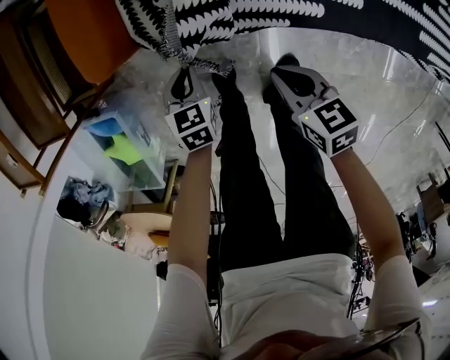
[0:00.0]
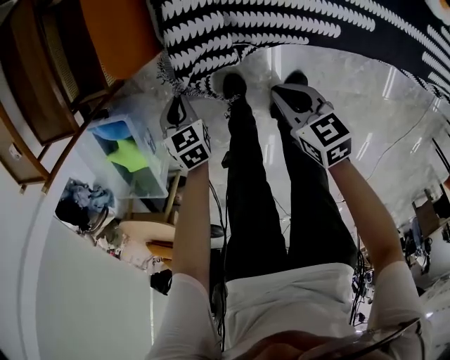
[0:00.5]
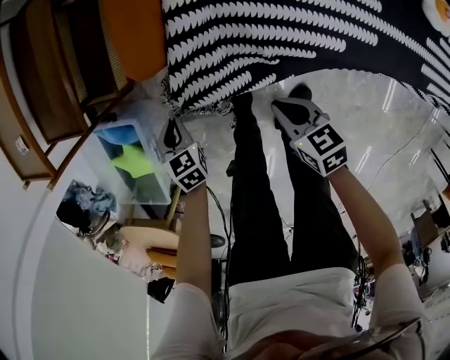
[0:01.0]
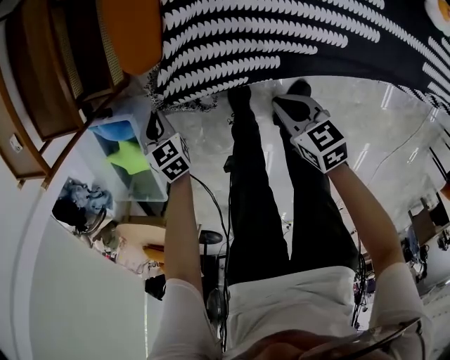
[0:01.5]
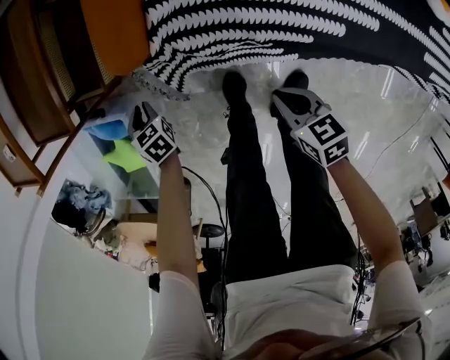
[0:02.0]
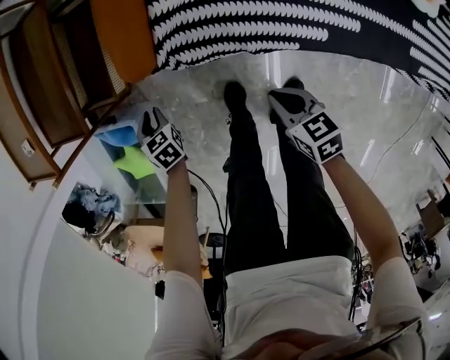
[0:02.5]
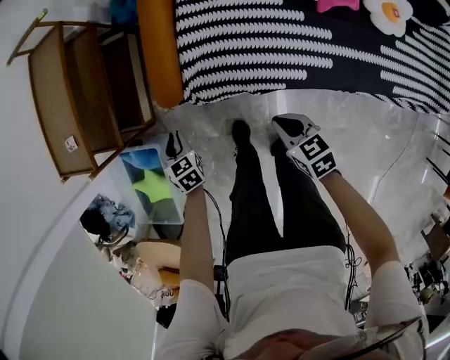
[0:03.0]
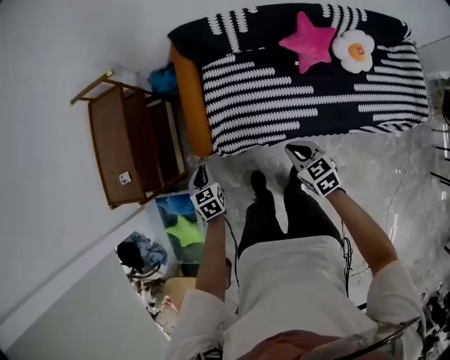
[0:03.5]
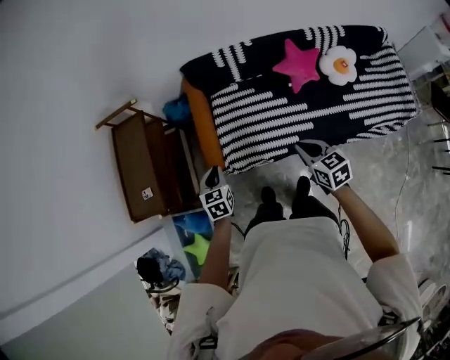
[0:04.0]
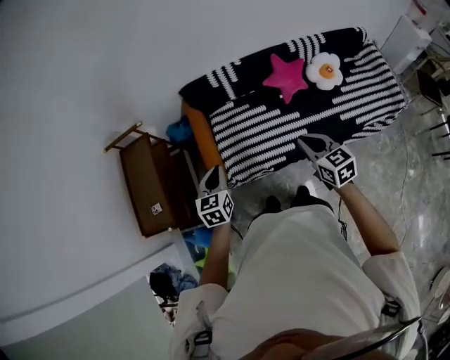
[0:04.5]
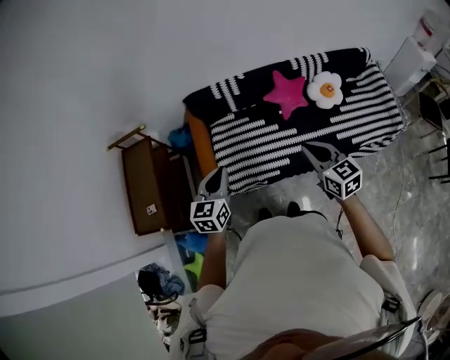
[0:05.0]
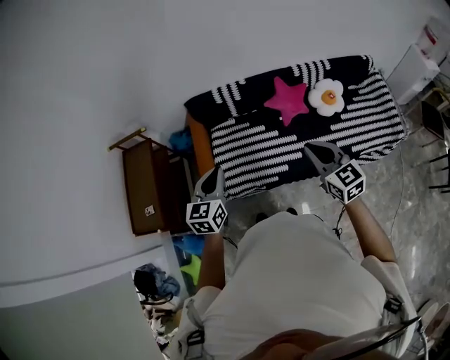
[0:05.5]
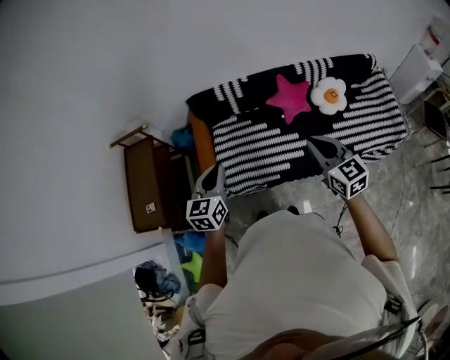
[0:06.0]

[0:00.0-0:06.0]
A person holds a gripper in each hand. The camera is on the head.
0:00.0 to 0:02.0: The right gripper moves roughly 10 cm; the left gripper ends up some 25 cm from where it was, and rotates approximately 30 degrees.
0:02.0 to 0:04.0: The two grippers go some 50 cm upward. The right gripper changes its angle by roughly 30 degrees. Meanwhile the left gripper turns by approximately 40 degrees.
0:04.0 to 0:06.0: The two grippers go approximately 25 cm upward and to the right. The right gripper turns by roughly 20 degrees; the left gripper changes its angle by roughly 30 degrees.

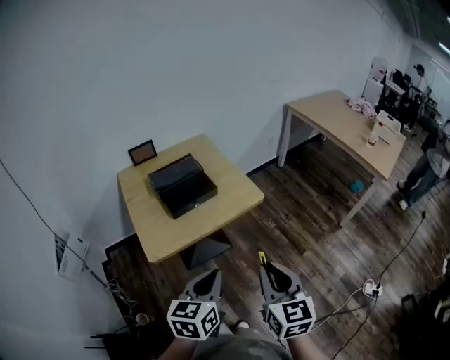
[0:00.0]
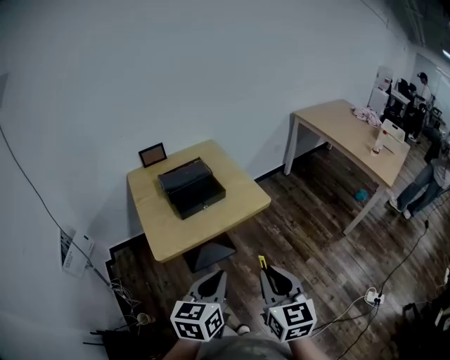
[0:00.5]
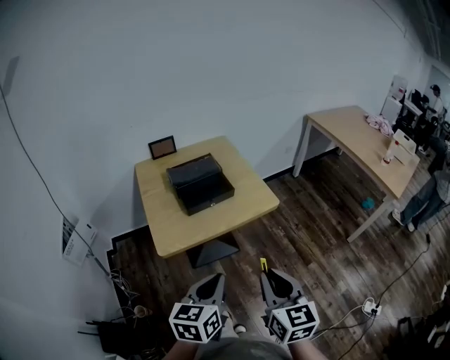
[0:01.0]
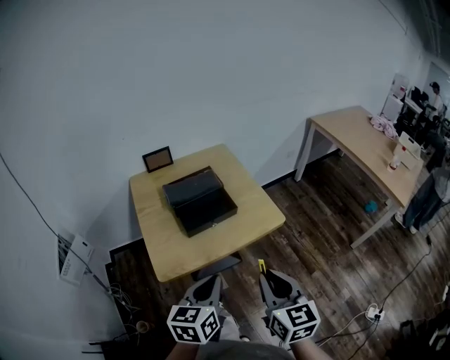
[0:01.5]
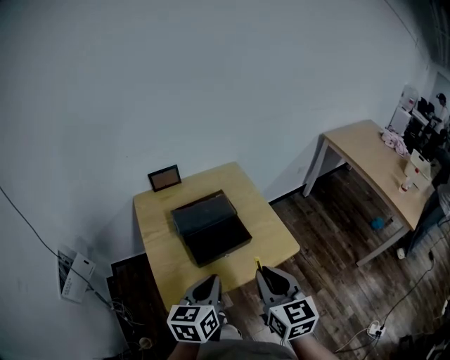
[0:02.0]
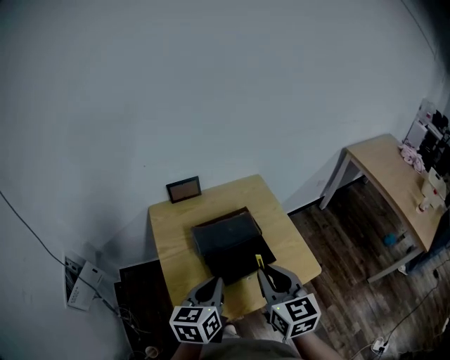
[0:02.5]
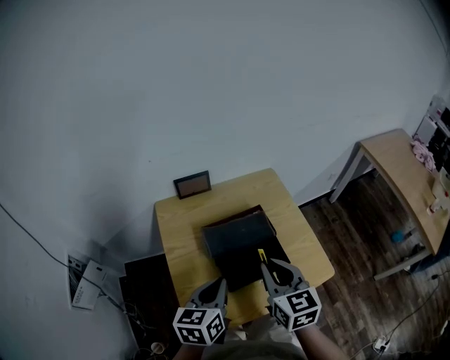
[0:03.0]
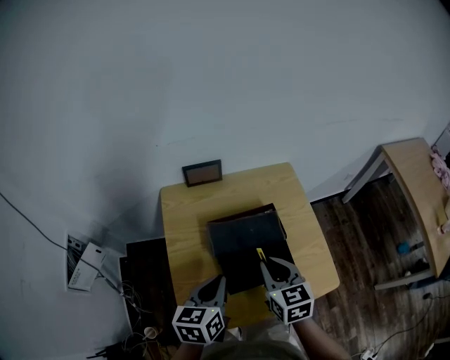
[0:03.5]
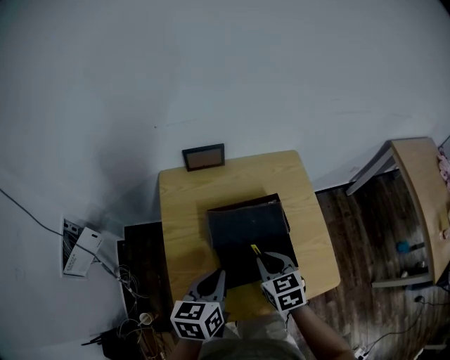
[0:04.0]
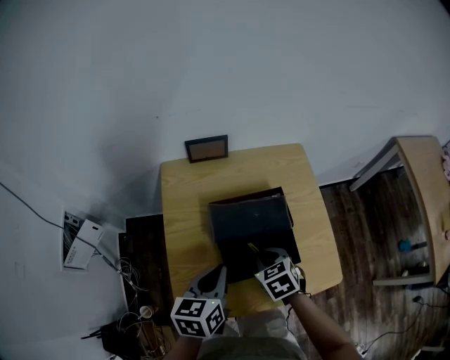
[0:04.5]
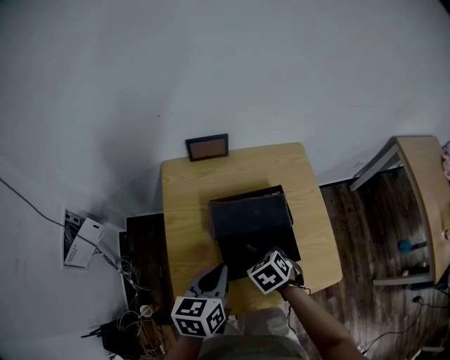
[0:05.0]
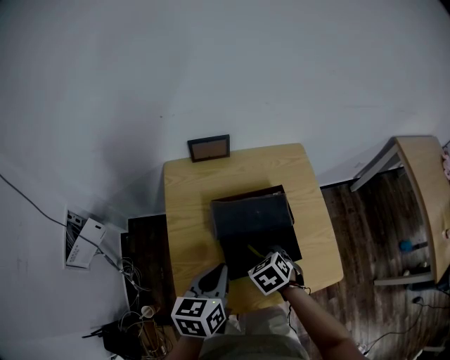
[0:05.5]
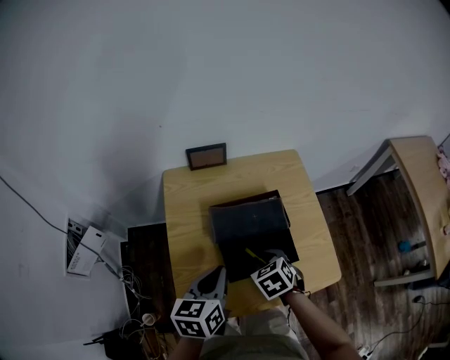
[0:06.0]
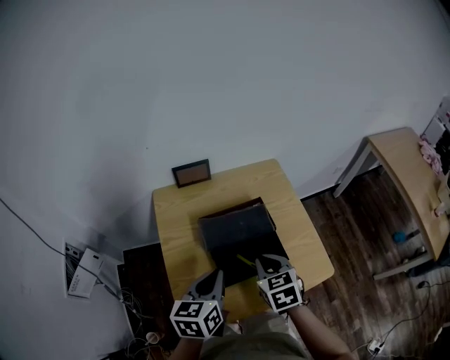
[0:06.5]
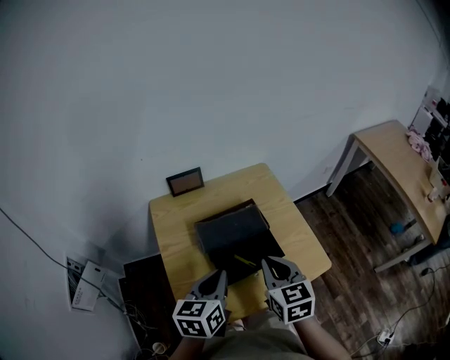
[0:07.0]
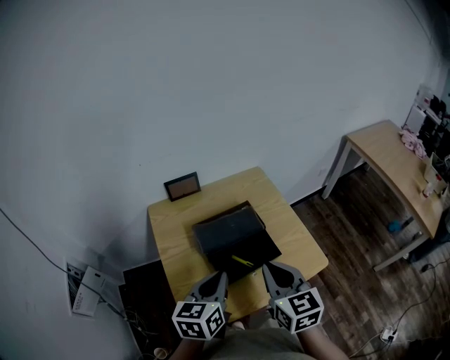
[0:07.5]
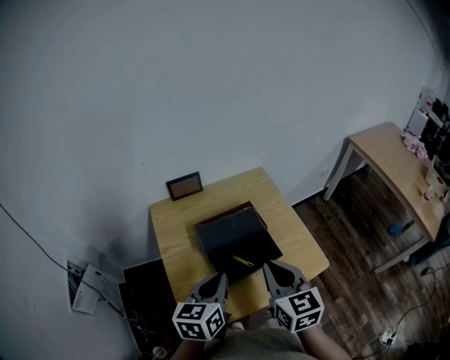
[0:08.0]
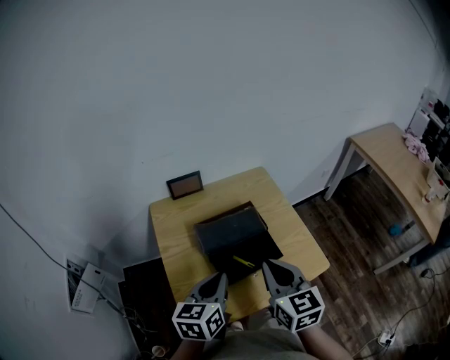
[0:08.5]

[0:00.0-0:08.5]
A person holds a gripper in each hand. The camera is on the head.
0:00.0 to 0:02.0: The two grippers go about 25 cm forward and to the left.
0:02.0 to 0:04.0: The right gripper heads forward, downward and to the left, covering roughly 30 cm, and swivels roughly 30 degrees; the left gripper moves forward, to the left and downward, about 20 cm.
0:04.0 to 0:06.5: The right gripper shifts by roughly 5 cm.
0:06.5 to 0:08.5: The right gripper heads upward and backward, covering approximately 15 cm, and rotates roughly 30 degrees.

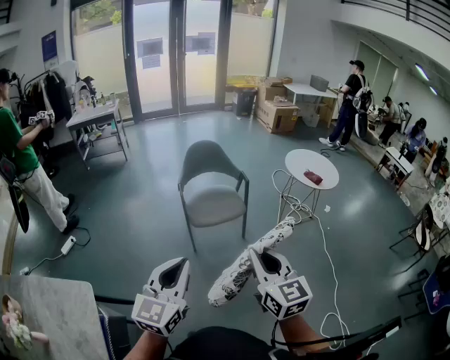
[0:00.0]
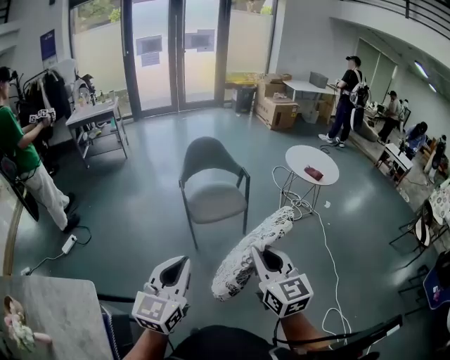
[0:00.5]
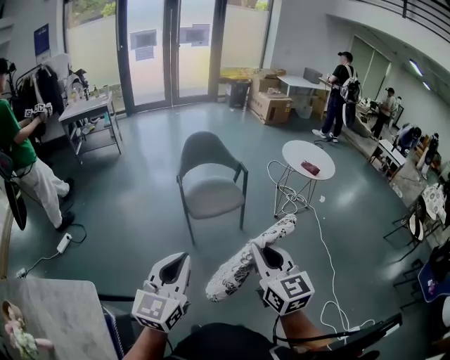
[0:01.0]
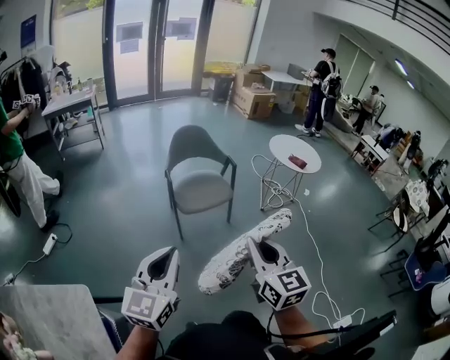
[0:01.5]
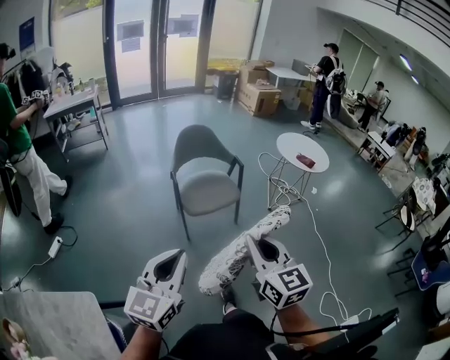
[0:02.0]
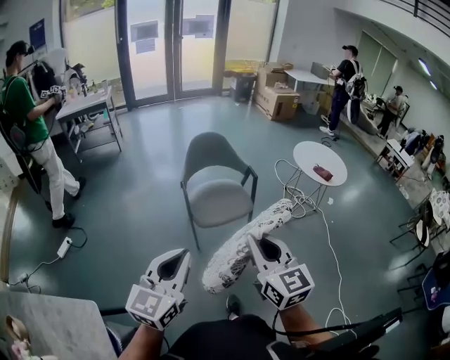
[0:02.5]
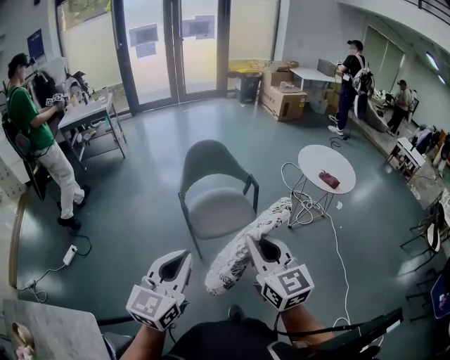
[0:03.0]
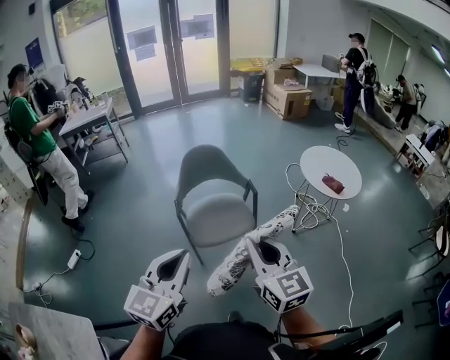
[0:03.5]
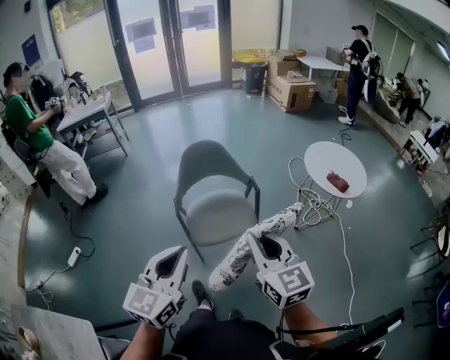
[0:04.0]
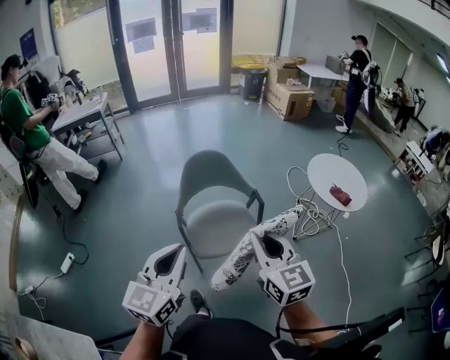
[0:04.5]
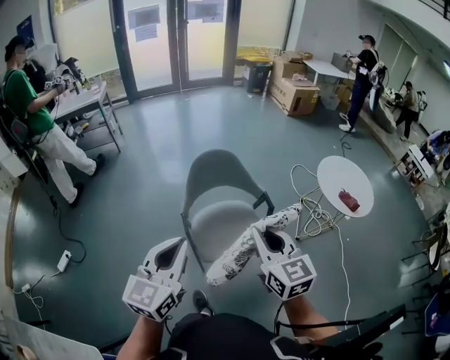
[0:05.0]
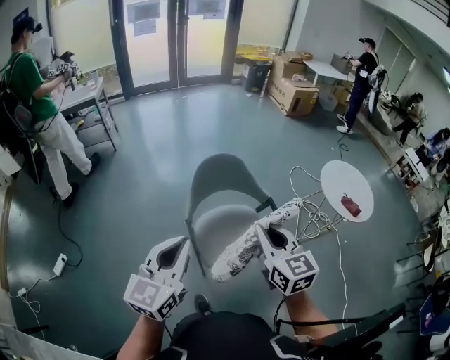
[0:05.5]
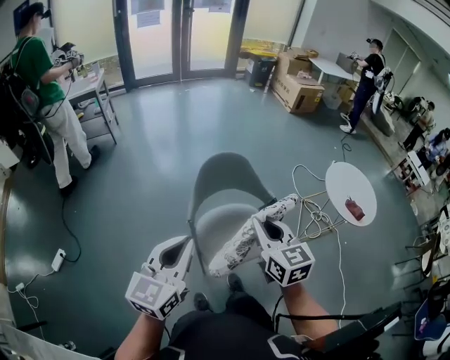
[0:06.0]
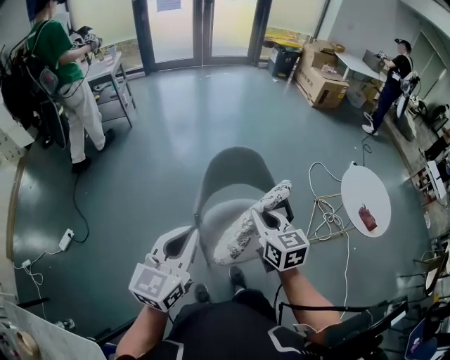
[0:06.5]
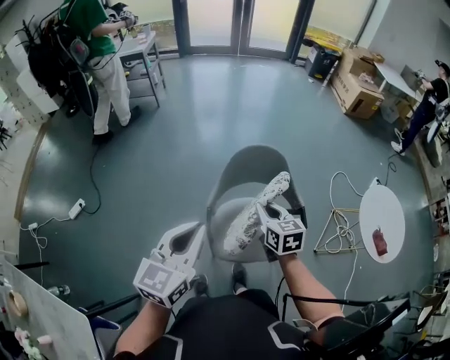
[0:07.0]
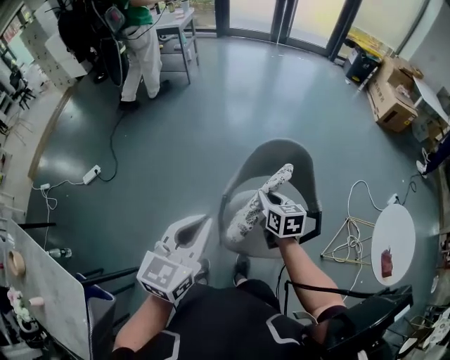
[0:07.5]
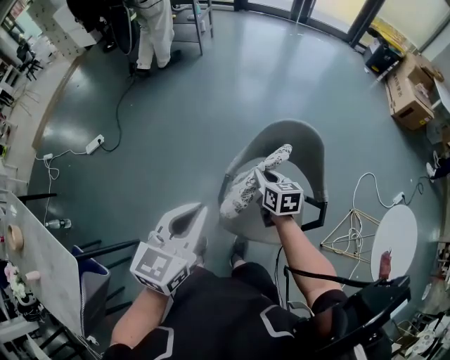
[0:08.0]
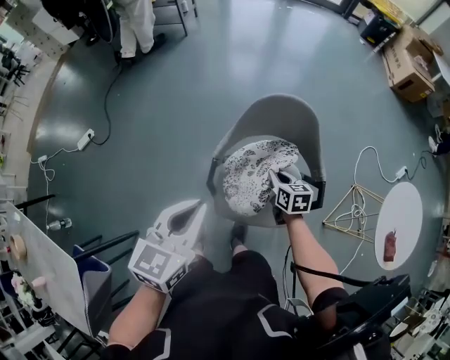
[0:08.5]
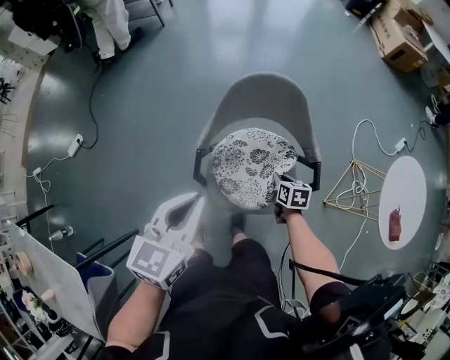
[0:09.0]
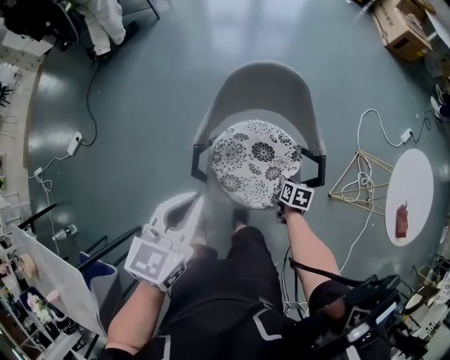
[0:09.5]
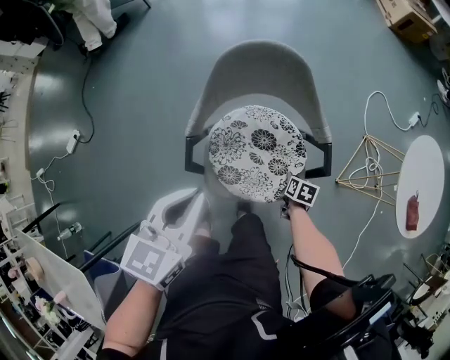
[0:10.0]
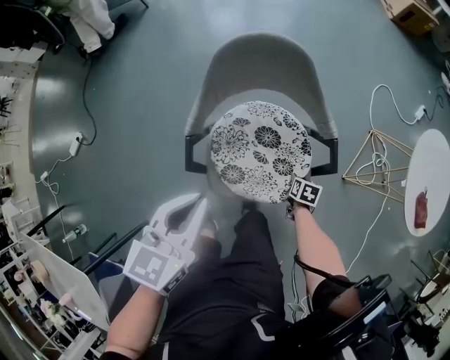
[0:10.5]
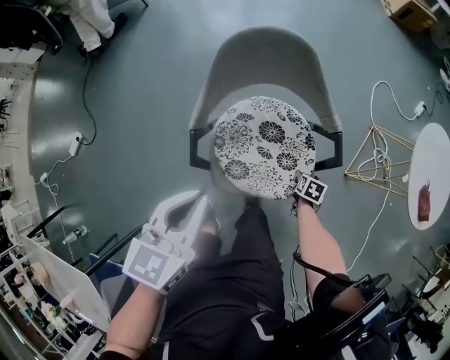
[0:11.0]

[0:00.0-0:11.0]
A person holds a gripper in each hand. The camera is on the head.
0:00.0 to 0:02.0: Both grippers move to the left, approximately 10 cm.
0:02.0 to 0:03.5: The two grippers go about 25 cm forward and to the right.
0:03.5 to 0:05.5: Both grippers travel together forward and to the left, some 25 cm.
0:05.5 to 0:07.5: The right gripper changes place by about 30 cm, and swivels approximately 30 degrees, while the left gripper shifts by approximately 10 cm, and turns by approximately 30 degrees.
0:07.5 to 0:09.0: The left gripper heads downward and to the right, covering about 10 cm. The right gripper heads downward and to the right, covering about 30 cm, and rotates roughly 20 degrees.
0:09.0 to 0:11.0: The right gripper is displaced downward by some 15 cm, changes its angle by roughly 30 degrees, and opens, while the left gripper shifts roughly 10 cm downward.

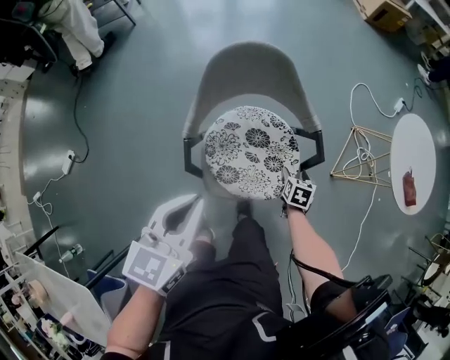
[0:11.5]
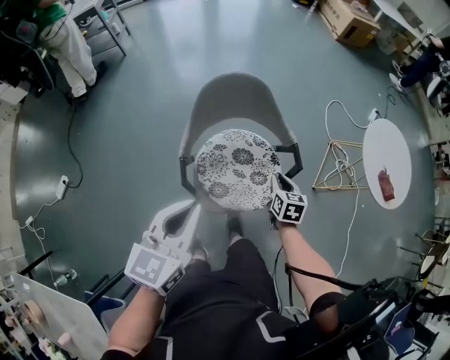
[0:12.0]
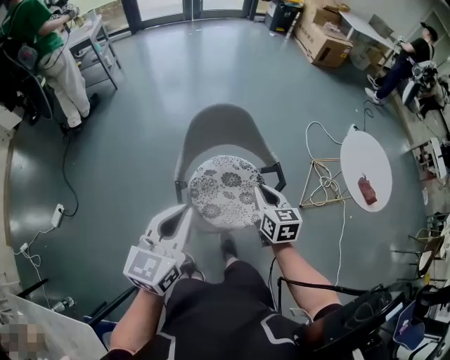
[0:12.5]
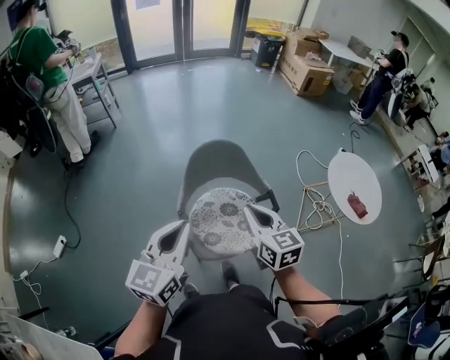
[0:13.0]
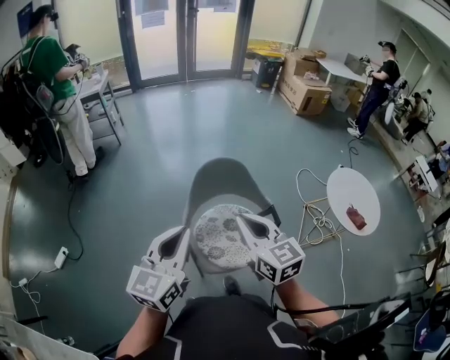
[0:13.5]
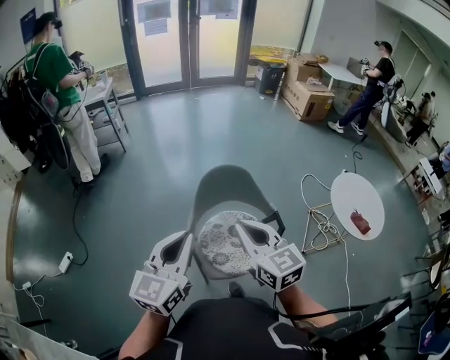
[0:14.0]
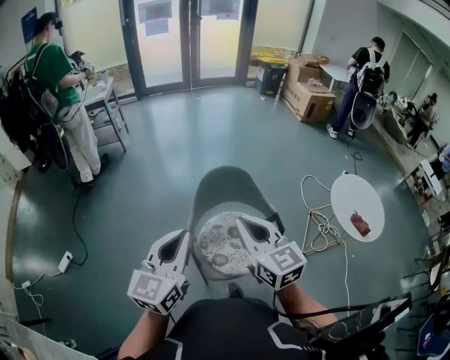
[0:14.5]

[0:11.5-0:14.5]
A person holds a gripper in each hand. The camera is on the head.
0:11.5 to 0:13.0: The left gripper shifts roughly 15 cm upward, and changes its angle by about 20 degrees; the right gripper is displaced upward by some 40 cm, tilts its fingers roughly 40 degrees upward, and closes its fingers.
0:13.0 to 0:14.5: The right gripper is displaced upward and to the left by some 10 cm. Meanwhile the left gripper ends up roughly 5 cm from where it was.
